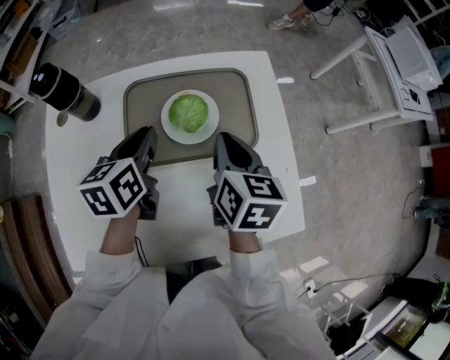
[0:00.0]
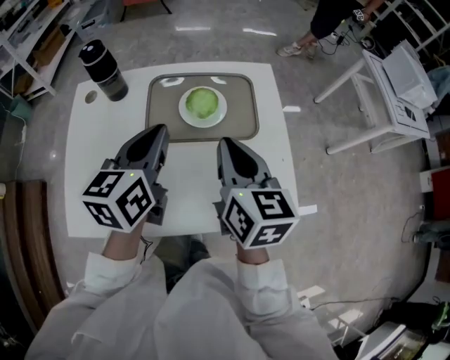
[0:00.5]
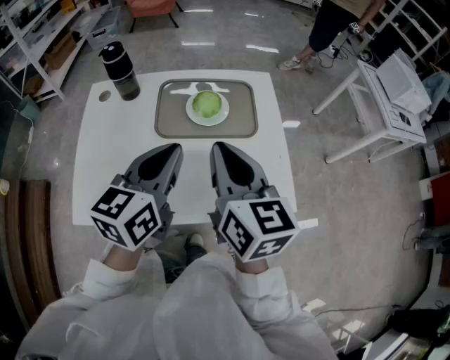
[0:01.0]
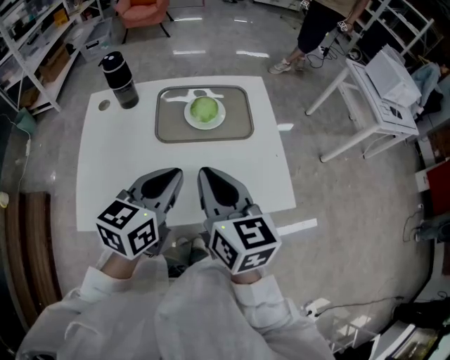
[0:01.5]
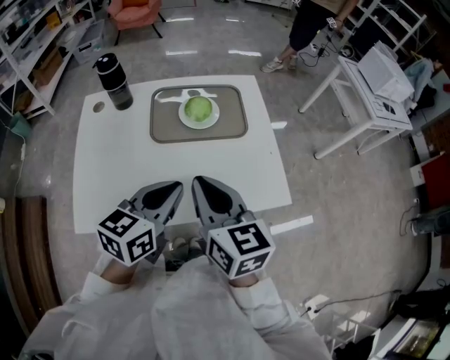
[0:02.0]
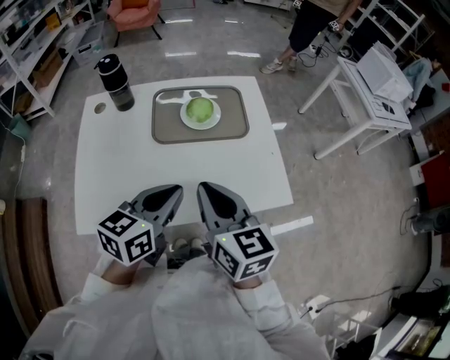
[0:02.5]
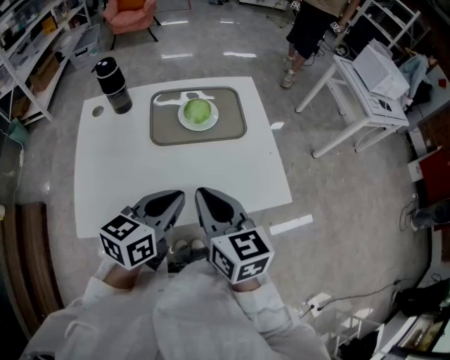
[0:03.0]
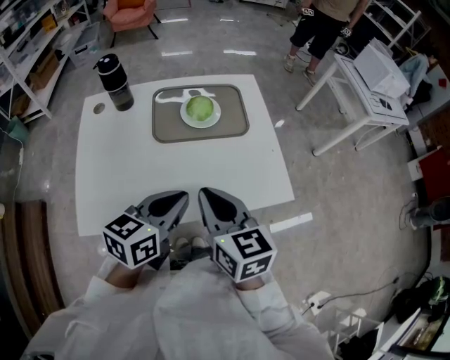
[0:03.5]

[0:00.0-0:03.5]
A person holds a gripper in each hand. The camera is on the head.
0.0 to 2.0 s: The right gripper goes some 30 cm backward and upward, and changes its angle by some 20 degrees; the left gripper goes approximately 30 cm backward, and rotates roughly 30 degrees.
2.0 to 3.5 s: The grippers make only small movements.

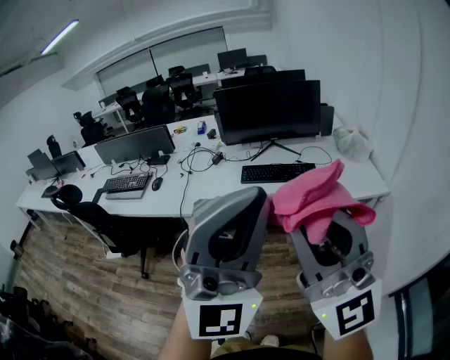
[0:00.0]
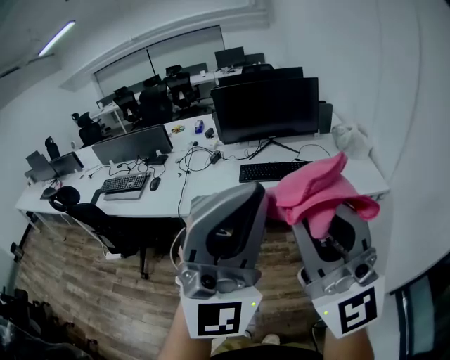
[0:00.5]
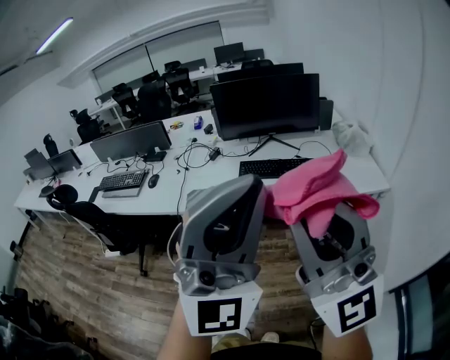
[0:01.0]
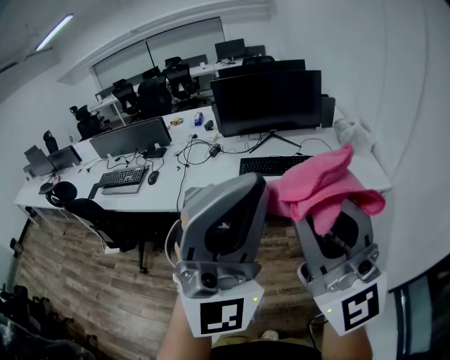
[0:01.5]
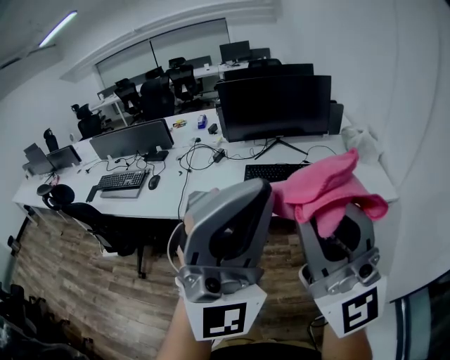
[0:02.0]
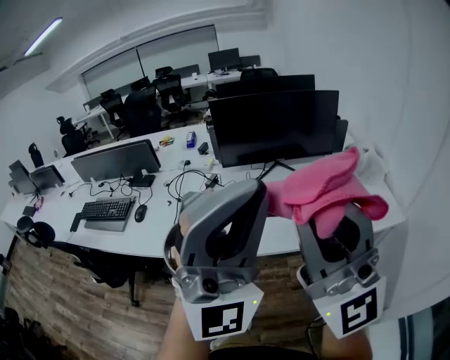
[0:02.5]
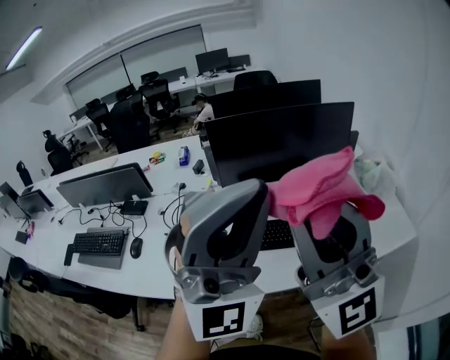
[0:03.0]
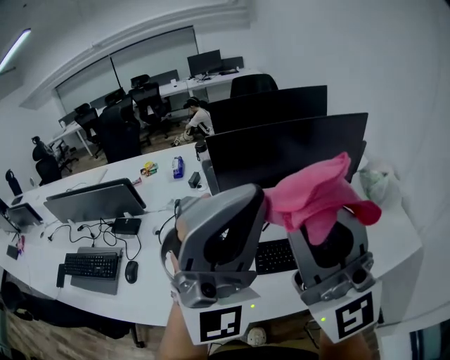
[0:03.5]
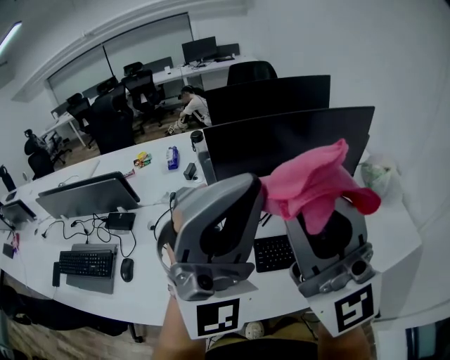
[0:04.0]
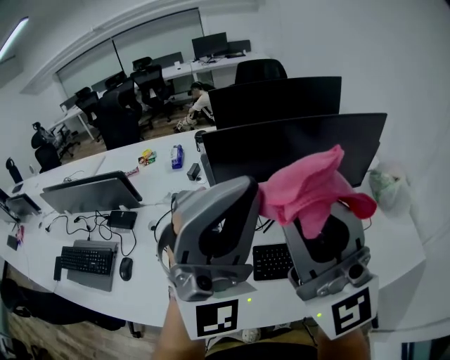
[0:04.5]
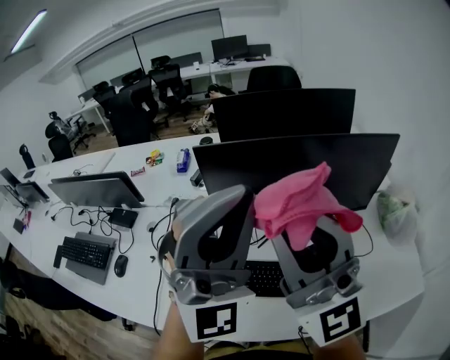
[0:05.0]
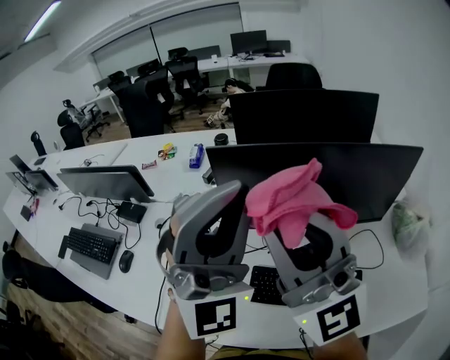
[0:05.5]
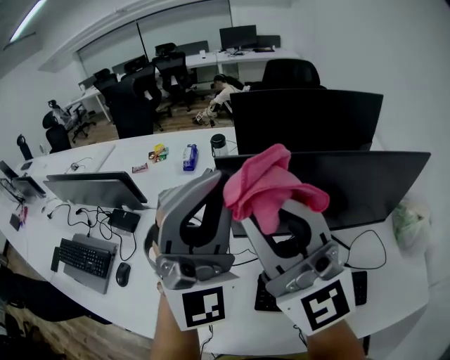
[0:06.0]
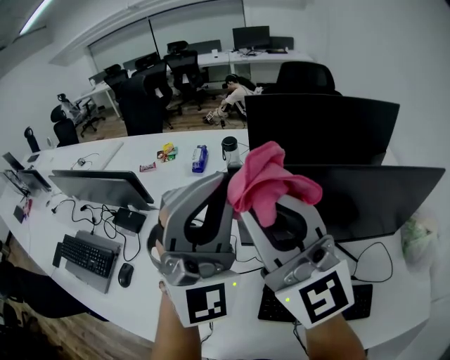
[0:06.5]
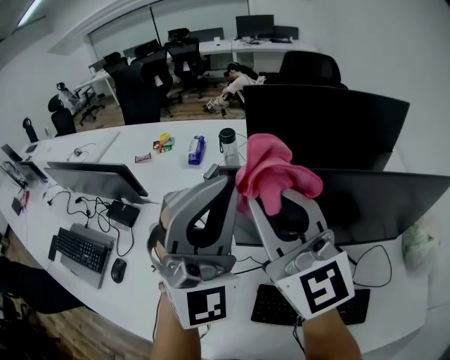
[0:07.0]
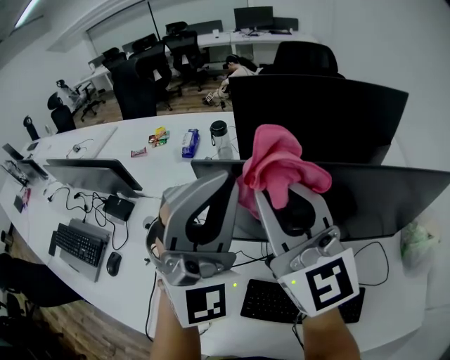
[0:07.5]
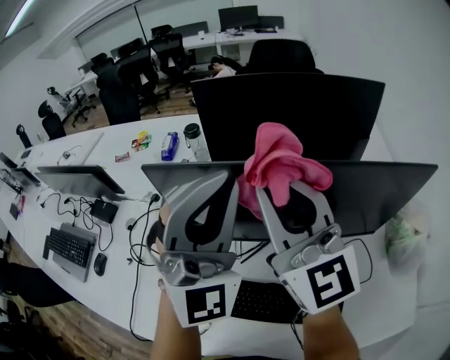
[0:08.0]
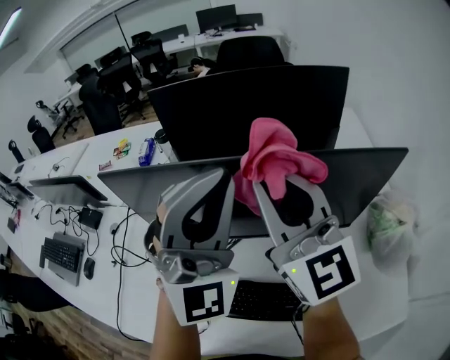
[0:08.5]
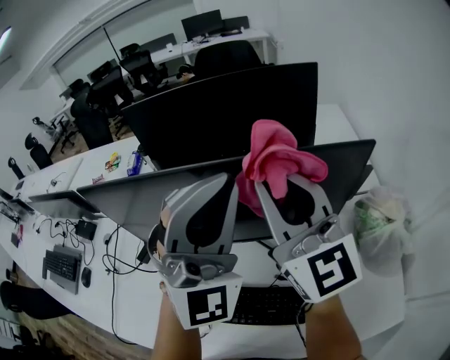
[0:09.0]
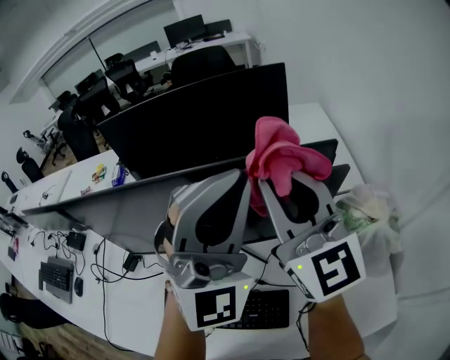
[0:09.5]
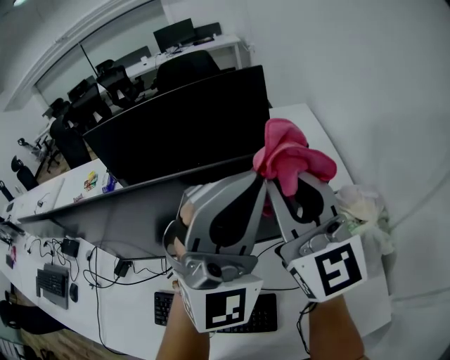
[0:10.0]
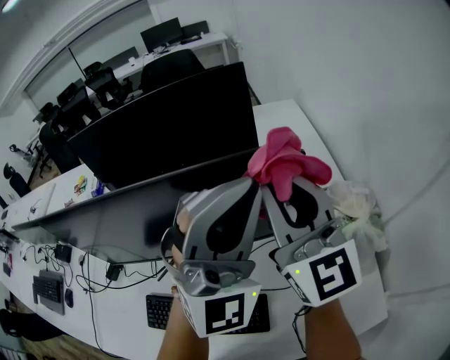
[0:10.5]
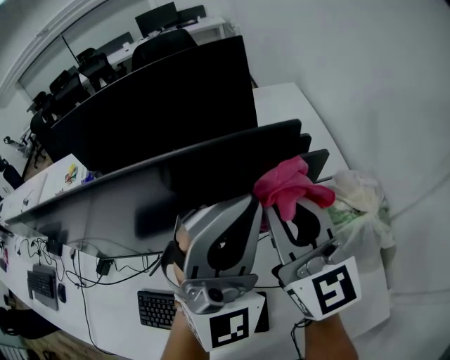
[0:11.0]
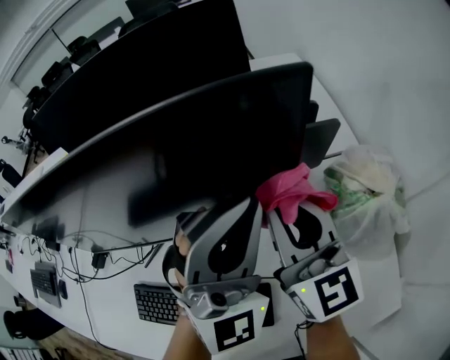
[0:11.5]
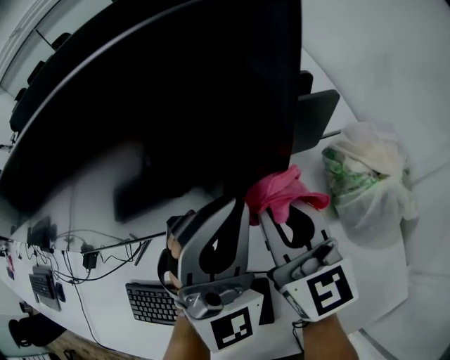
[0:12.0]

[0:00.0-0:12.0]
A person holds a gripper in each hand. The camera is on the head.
0.0 to 2.0 s: The grippers both shift forward by roughly 5 cm.
2.0 to 4.0 s: The two grippers travel together, forward, about 50 cm.
4.0 to 6.0 s: The two grippers go about 20 cm forward. The left gripper changes its angle by approximately 20 degrees.
6.0 to 8.0 s: The two grippers go approximately 15 cm to the right and forward.
8.0 to 10.0 s: The two grippers go approximately 35 cm to the right.
10.0 to 12.0 s: The two grippers go roughly 20 cm downward. The right gripper swivels roughly 20 degrees.

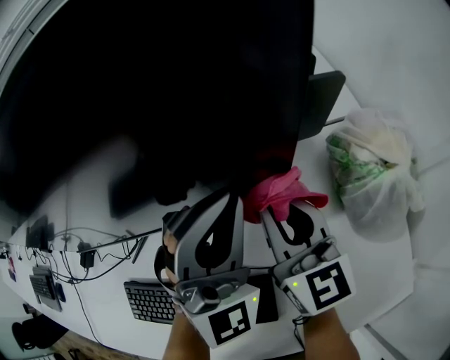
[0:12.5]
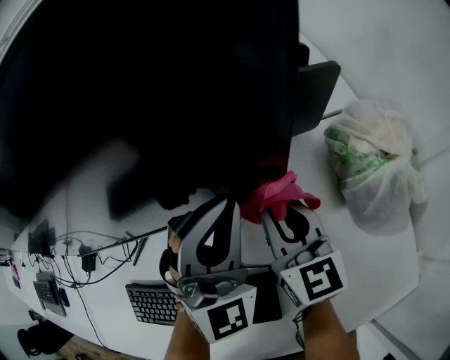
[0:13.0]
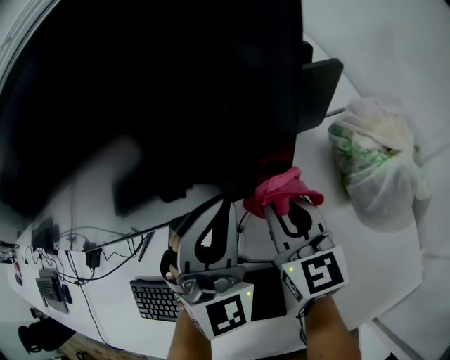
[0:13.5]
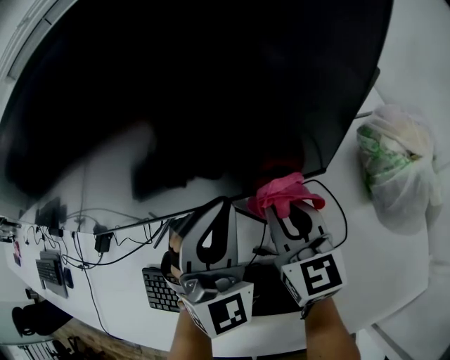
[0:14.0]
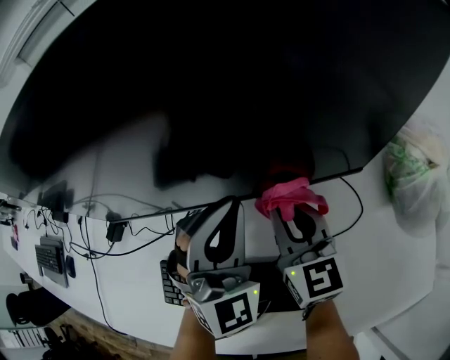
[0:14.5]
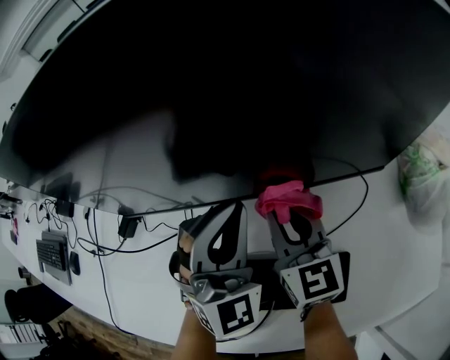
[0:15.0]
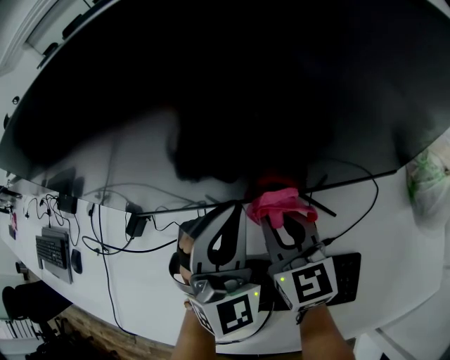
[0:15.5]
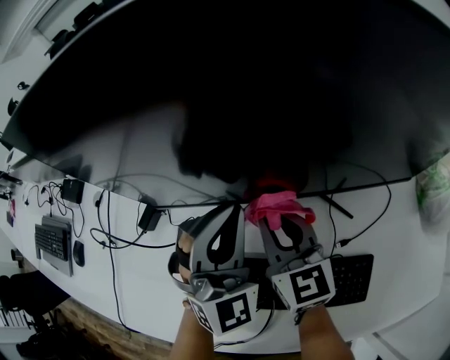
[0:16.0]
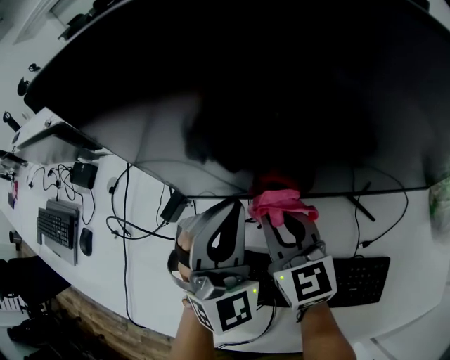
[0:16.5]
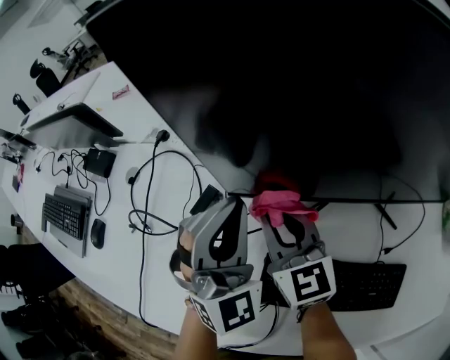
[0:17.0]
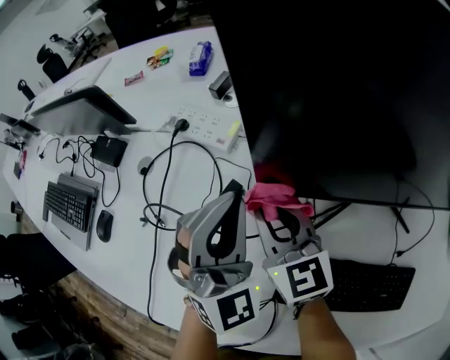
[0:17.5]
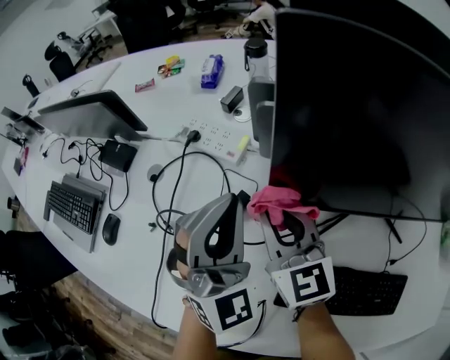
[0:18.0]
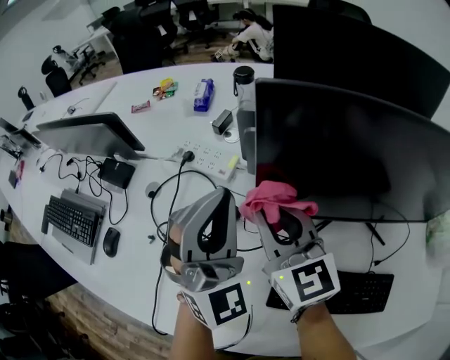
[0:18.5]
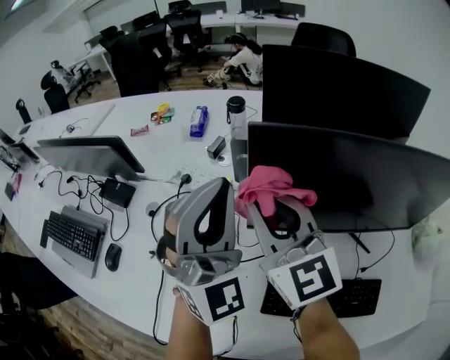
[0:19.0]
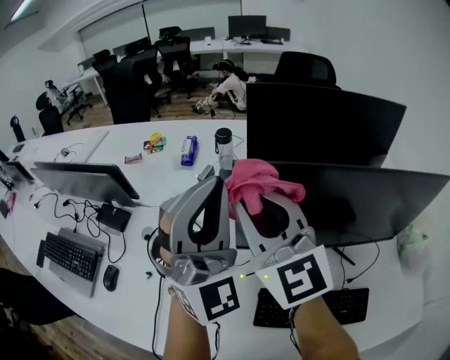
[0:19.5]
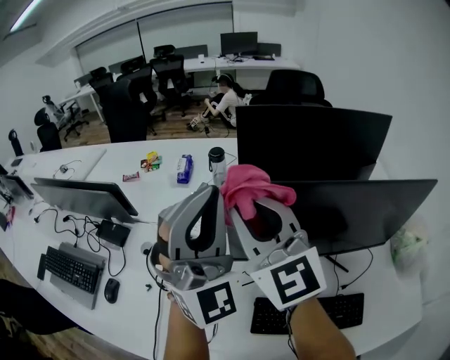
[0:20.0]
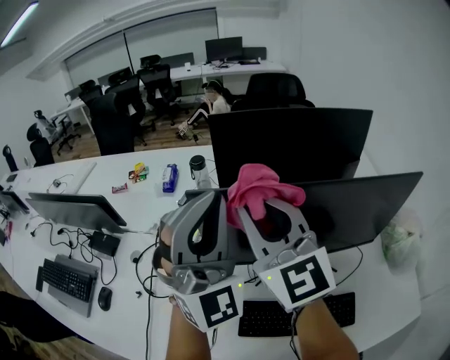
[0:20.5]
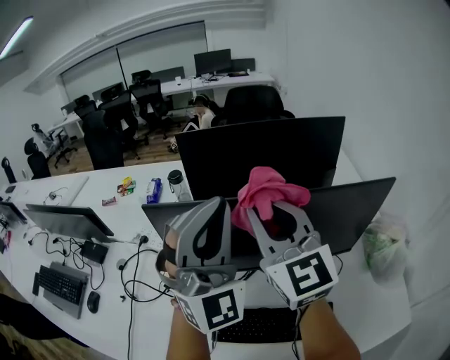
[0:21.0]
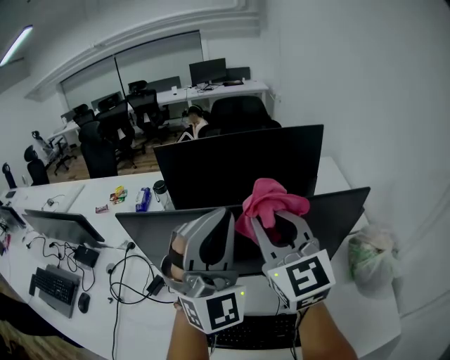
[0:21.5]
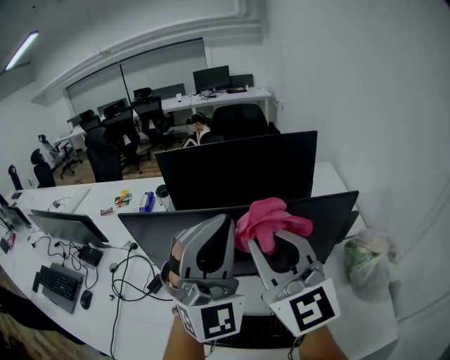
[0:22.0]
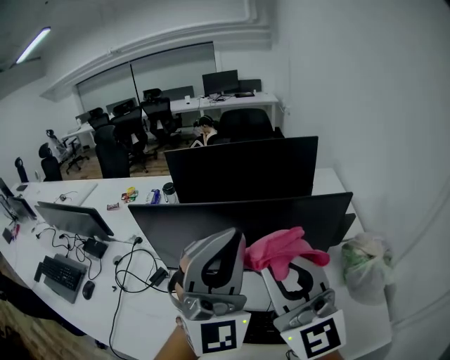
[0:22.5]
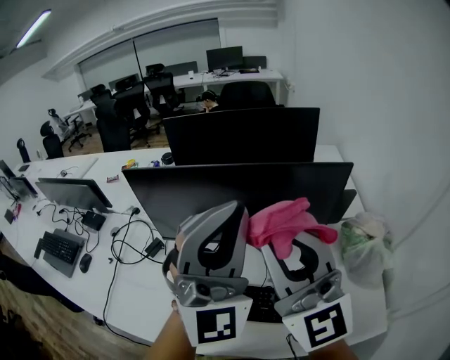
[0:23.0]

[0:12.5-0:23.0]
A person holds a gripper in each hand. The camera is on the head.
12.5 to 14.5 s: Both grippers move to the left, approximately 15 cm.
14.5 to 16.5 s: The two grippers go roughly 25 cm to the left.
16.5 to 19.0 s: The grippers both shift upward and to the left by about 25 cm.
19.0 to 21.0 s: The two grippers go about 25 cm to the right and upward.
21.0 to 23.0 s: Both grippers travel together backward and to the right, roughly 20 cm.

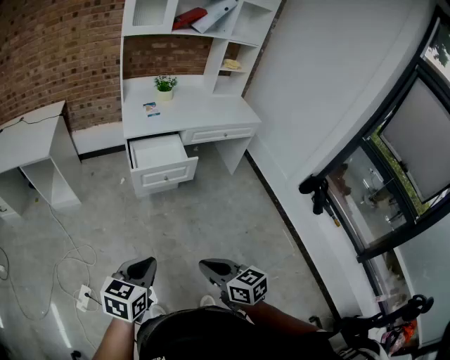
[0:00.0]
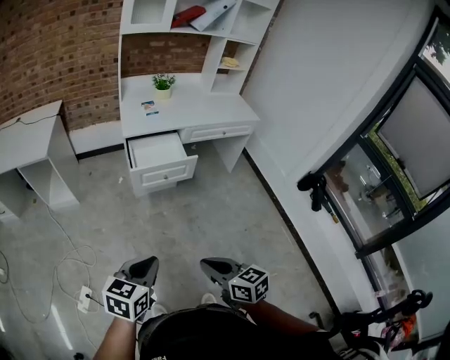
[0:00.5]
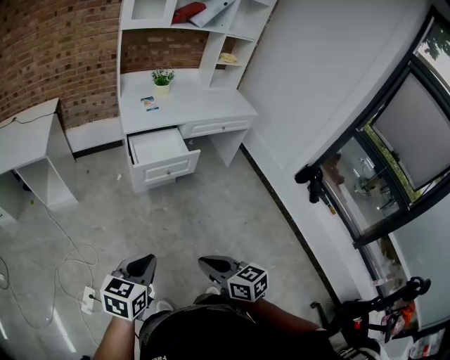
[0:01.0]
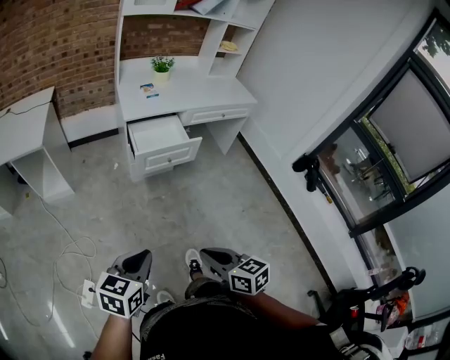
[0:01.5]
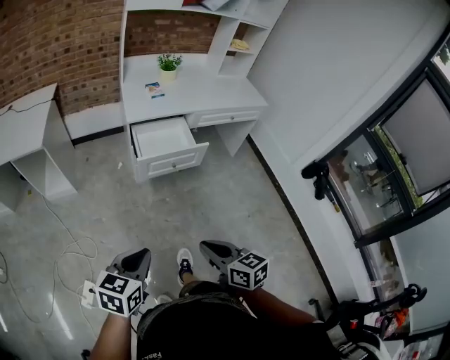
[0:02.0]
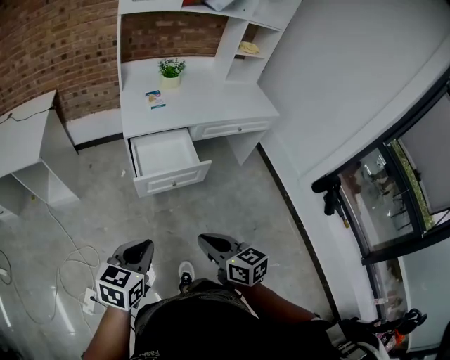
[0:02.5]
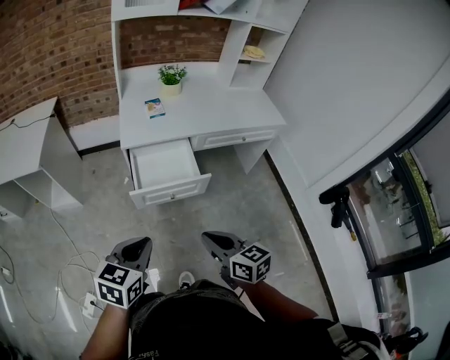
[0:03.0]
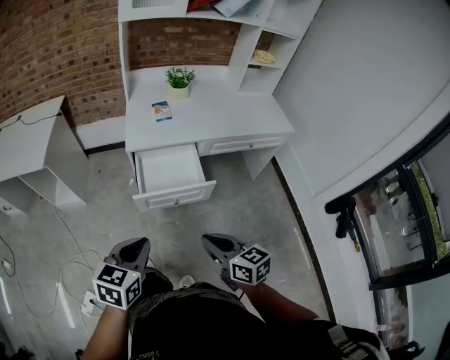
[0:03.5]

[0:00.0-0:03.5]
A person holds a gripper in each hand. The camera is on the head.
0.0 to 2.0 s: The right gripper shifts approximately 10 cm forward and to the left. Meanwhile the left gripper goes about 10 cm to the left and forward.
2.0 to 3.5 s: Both grippers move forward and to the right, approximately 25 cm.
